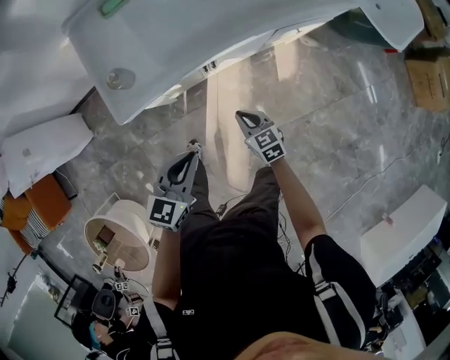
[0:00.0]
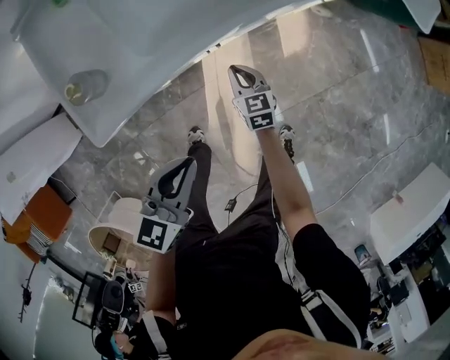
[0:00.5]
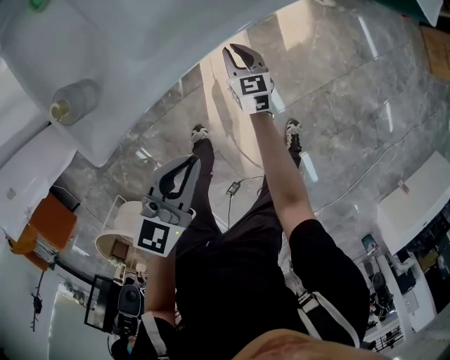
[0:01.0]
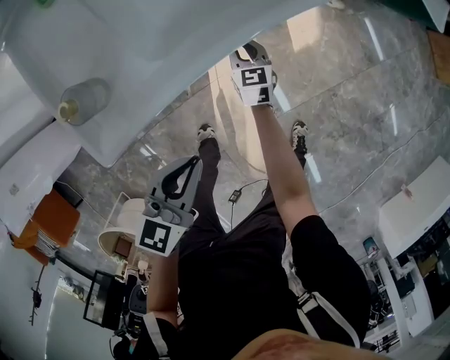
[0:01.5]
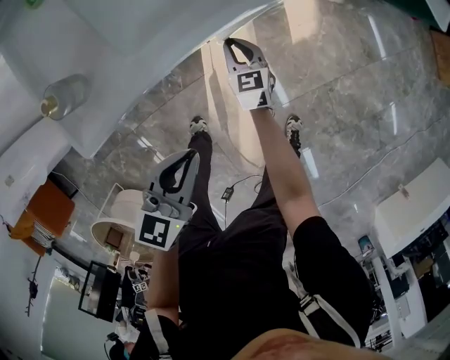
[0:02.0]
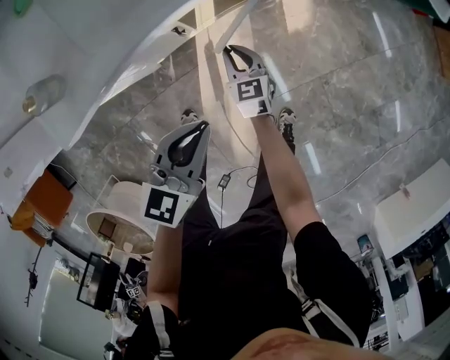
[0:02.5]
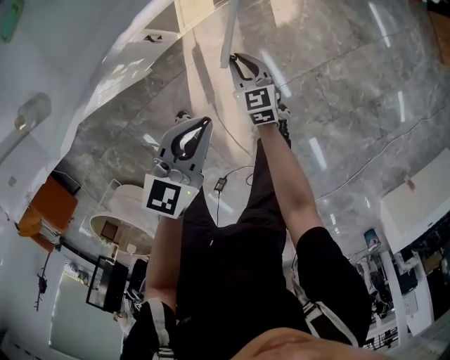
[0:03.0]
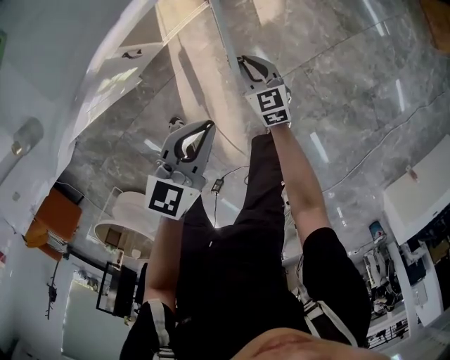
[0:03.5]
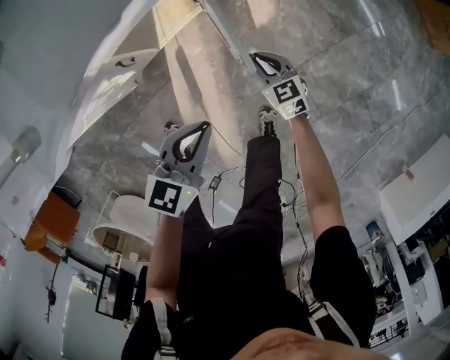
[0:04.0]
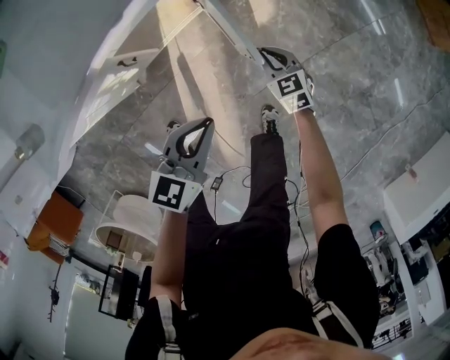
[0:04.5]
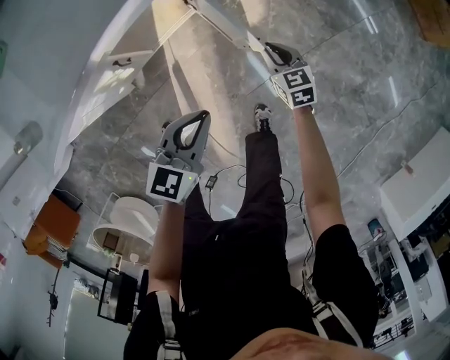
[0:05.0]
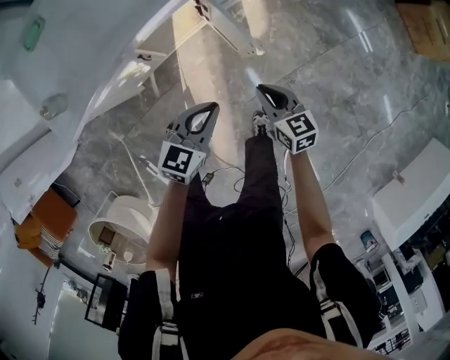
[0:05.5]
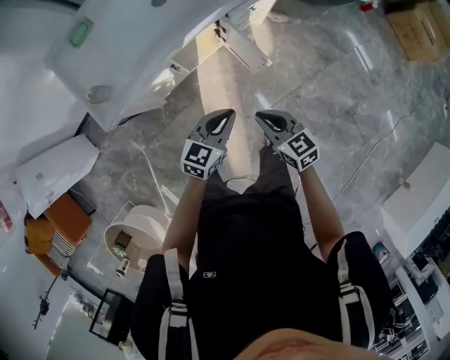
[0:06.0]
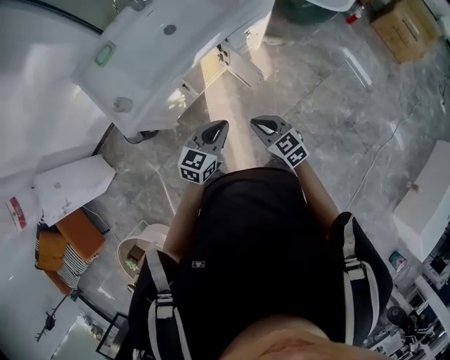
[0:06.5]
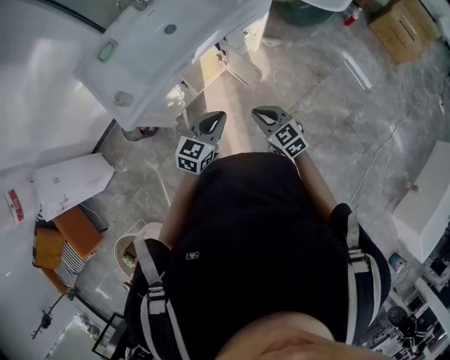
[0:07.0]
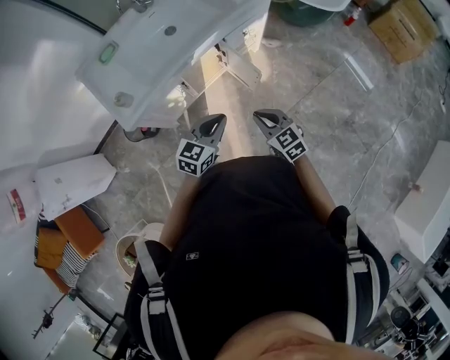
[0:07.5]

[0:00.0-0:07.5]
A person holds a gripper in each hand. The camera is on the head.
0:00.0 to 0:02.0: The right gripper goes about 25 cm downward and forward, and rotates about 20 degrees. The left gripper goes roughly 10 cm downward.
0:02.0 to 0:04.0: The grippers both shift to the right by about 25 cm.
0:04.0 to 0:05.5: The left gripper shifts approximately 5 cm upward. Meanwhile the right gripper is displaced upward and backward by roughly 20 cm.
0:05.5 to 0:07.5: Both grippers travel together upward and backward, about 20 cm.

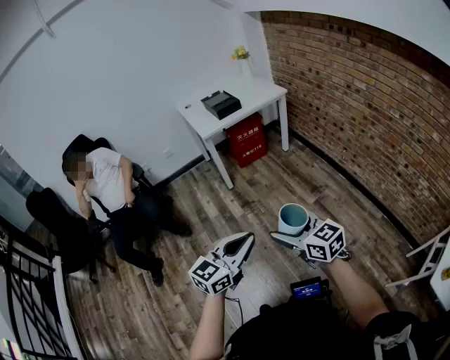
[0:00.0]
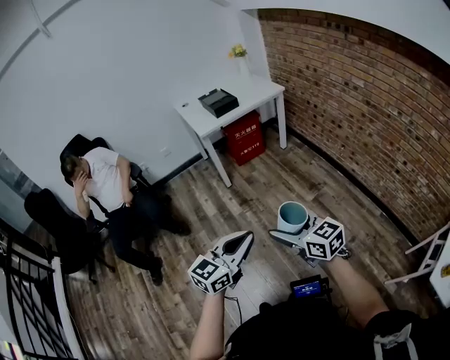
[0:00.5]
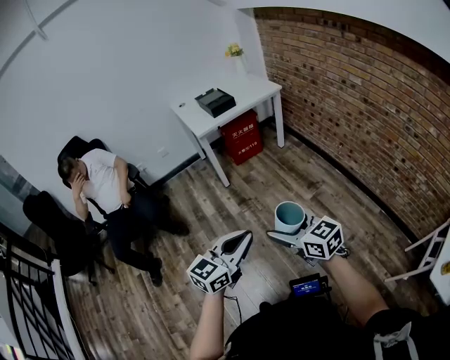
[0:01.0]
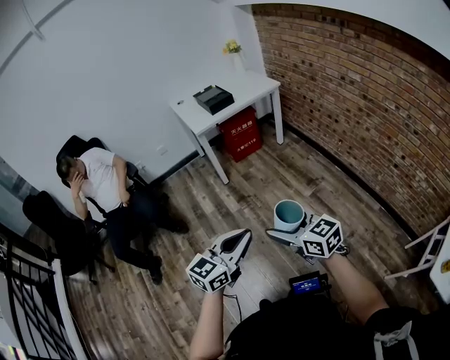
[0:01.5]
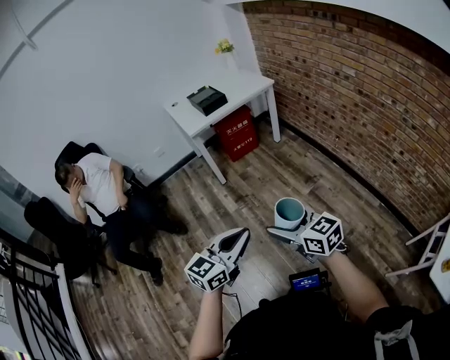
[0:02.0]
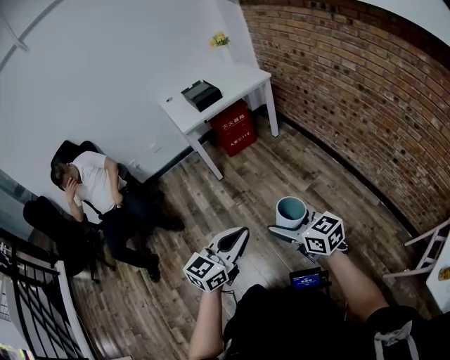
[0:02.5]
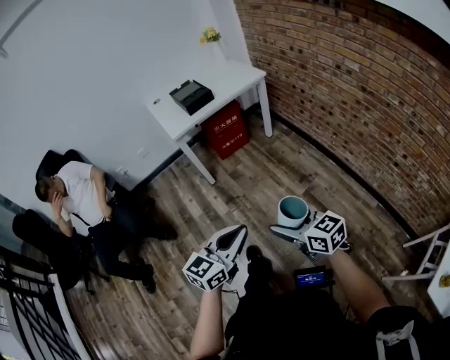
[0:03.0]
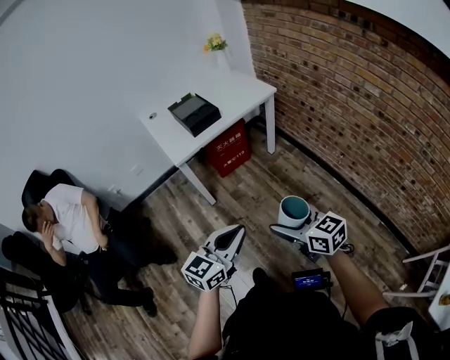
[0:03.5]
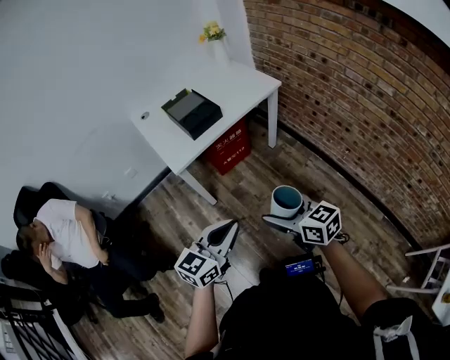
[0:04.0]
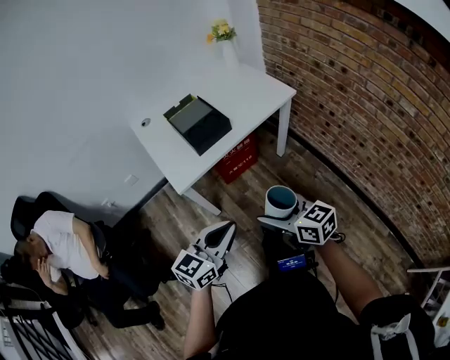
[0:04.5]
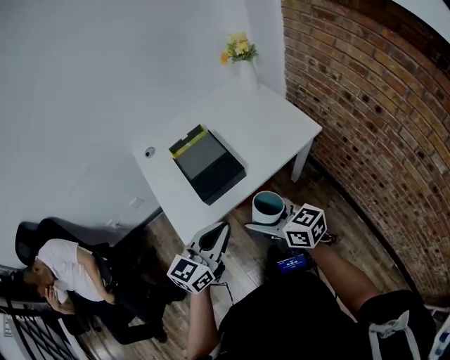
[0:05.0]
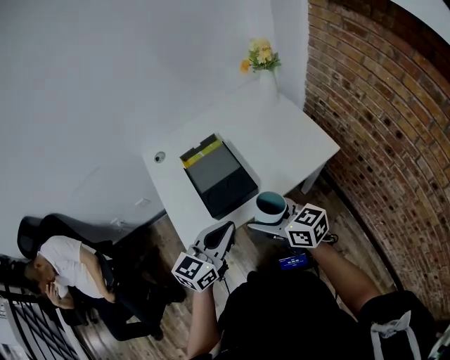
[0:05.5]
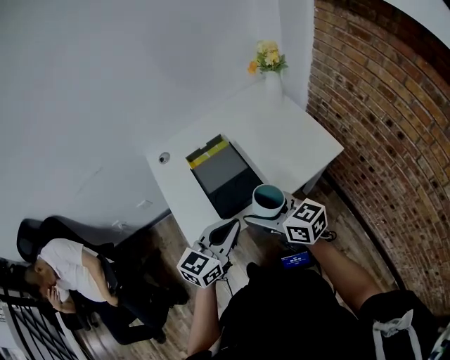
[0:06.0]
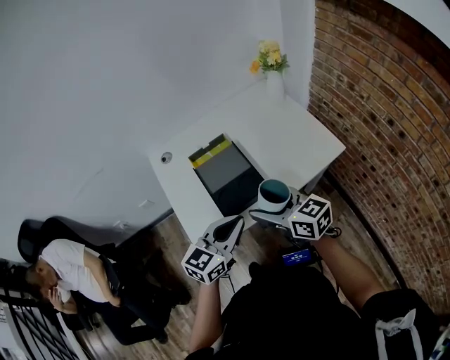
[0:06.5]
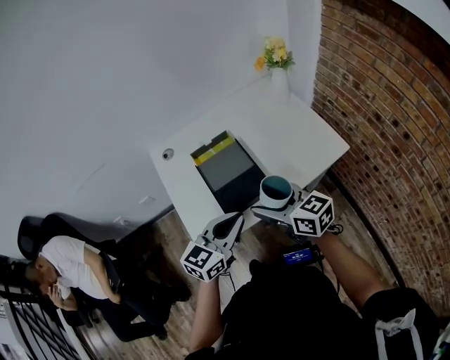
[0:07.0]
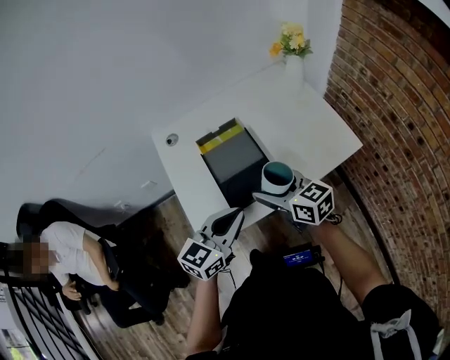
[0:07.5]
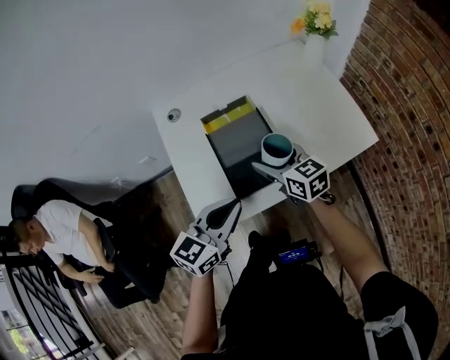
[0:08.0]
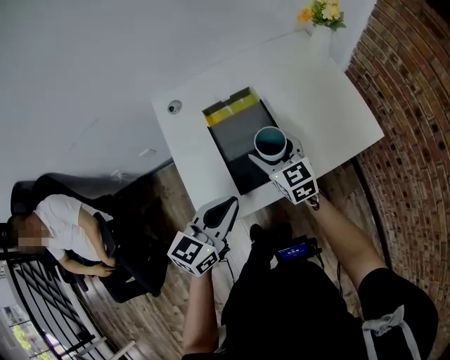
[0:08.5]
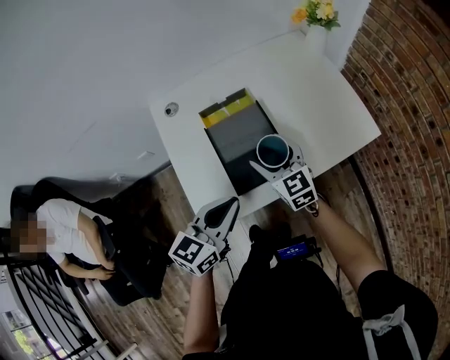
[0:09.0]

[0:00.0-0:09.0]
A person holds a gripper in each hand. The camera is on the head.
0:00.0 to 0:02.0: There are only small adjustments of the grippers.
0:02.0 to 0:04.5: The two grippers travel together, forward, about 60 cm.
0:04.5 to 0:07.0: The two grippers go some 35 cm forward.
0:07.0 to 0:09.0: The right gripper goes approximately 15 cm forward and downward, and changes its angle by some 30 degrees, while the left gripper goes roughly 5 cm to the left.

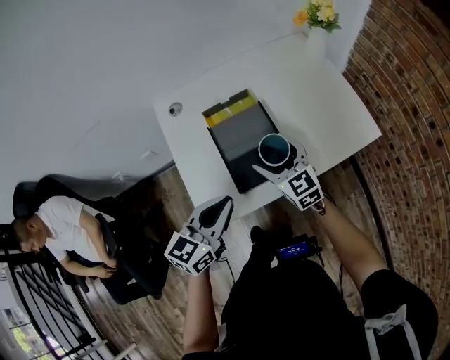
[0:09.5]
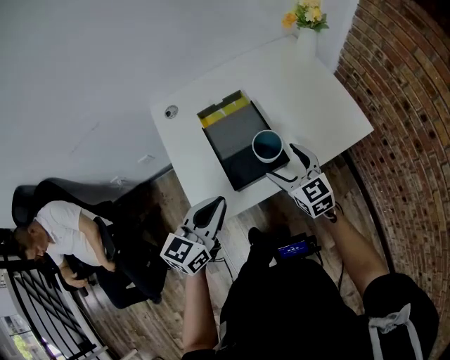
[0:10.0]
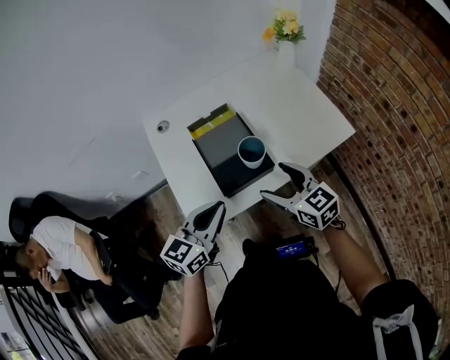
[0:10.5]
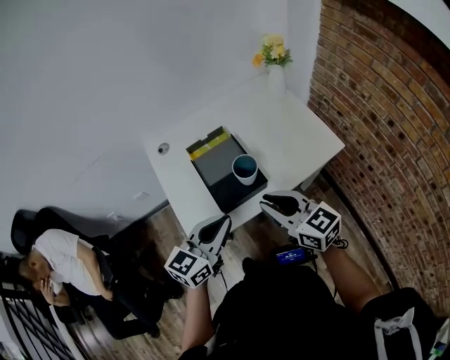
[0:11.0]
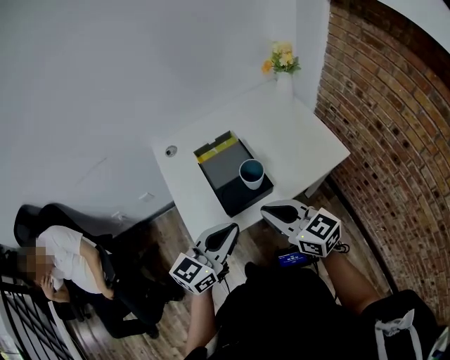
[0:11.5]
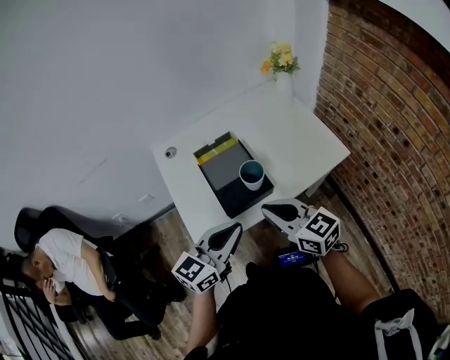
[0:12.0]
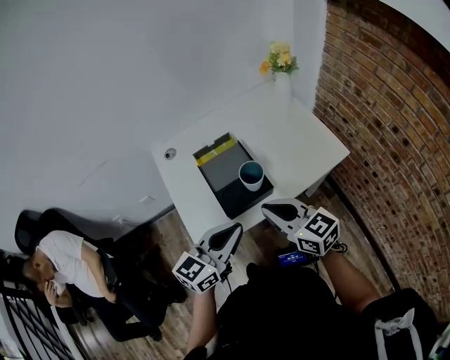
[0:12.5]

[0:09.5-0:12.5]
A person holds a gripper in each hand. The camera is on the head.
0:09.5 to 0:11.0: The right gripper goes some 20 cm backward and upward, and closes. The left gripper goes approximately 5 cm to the right.
0:11.0 to 0:12.5: The grippers make only small movements.

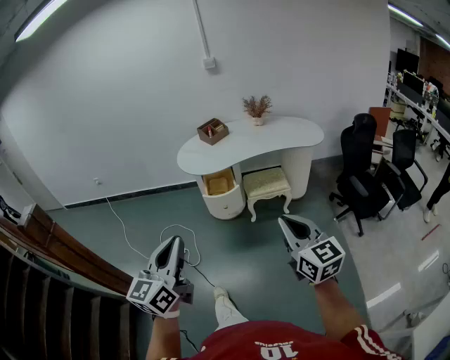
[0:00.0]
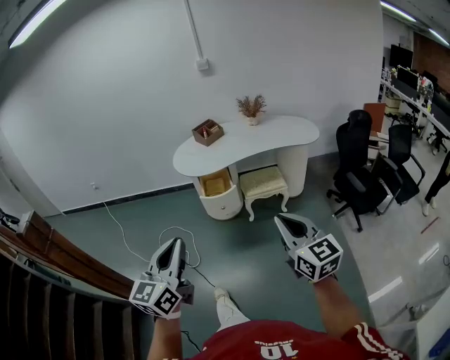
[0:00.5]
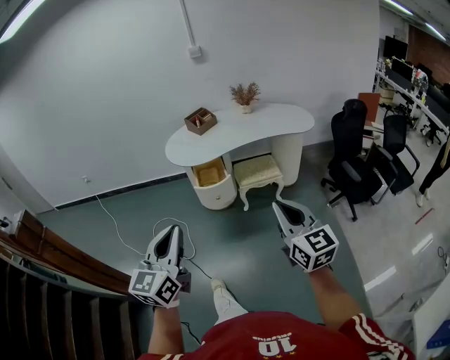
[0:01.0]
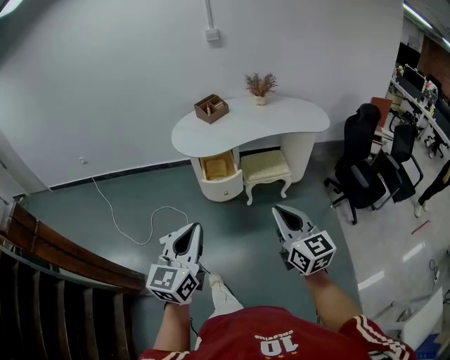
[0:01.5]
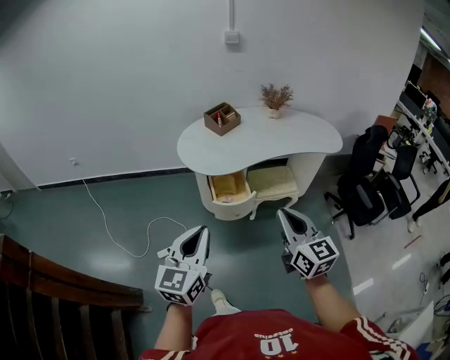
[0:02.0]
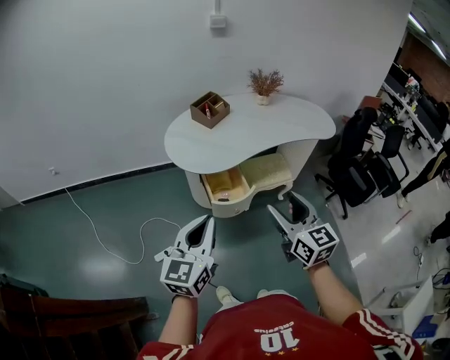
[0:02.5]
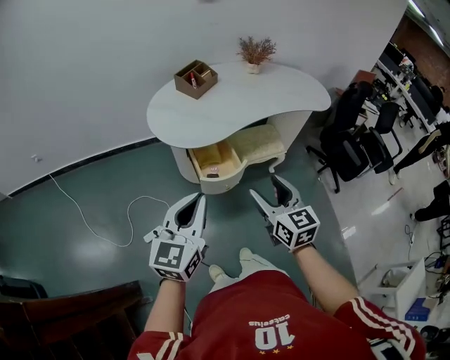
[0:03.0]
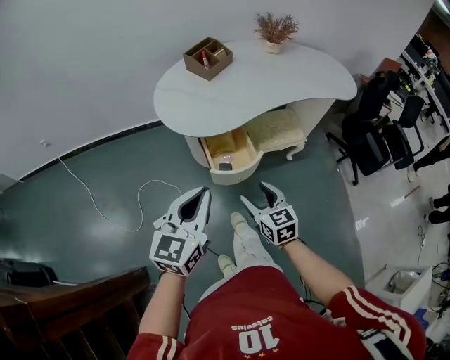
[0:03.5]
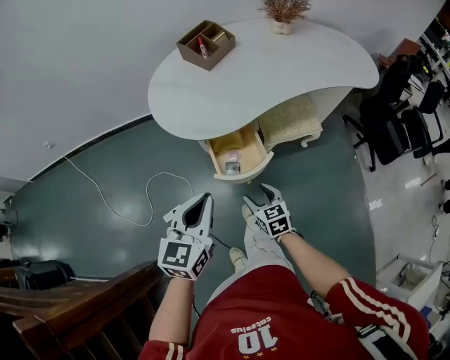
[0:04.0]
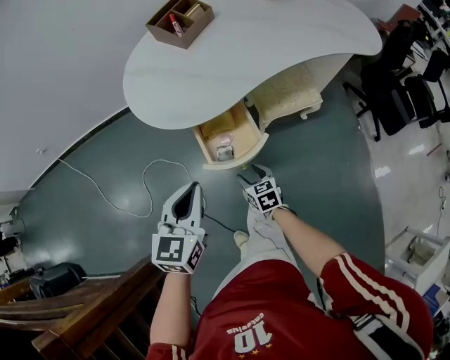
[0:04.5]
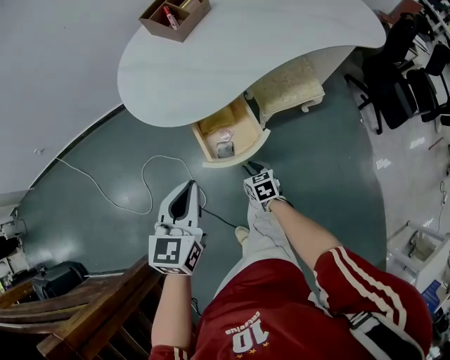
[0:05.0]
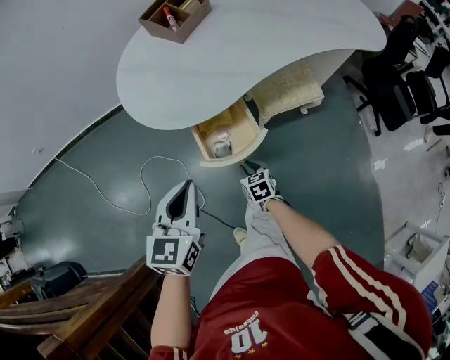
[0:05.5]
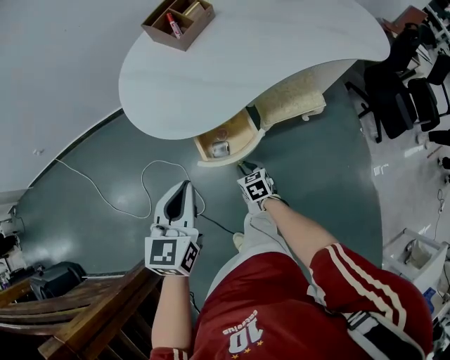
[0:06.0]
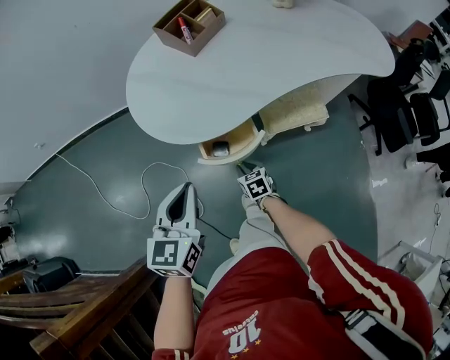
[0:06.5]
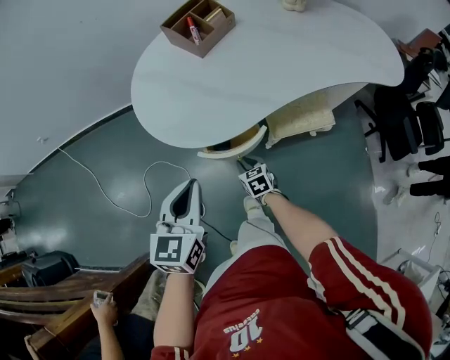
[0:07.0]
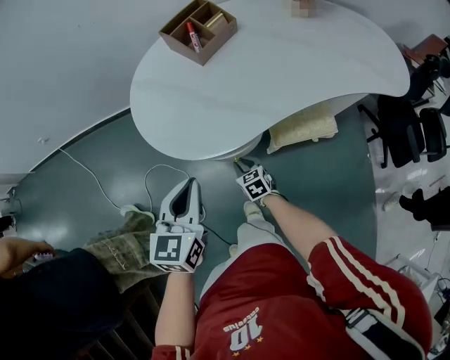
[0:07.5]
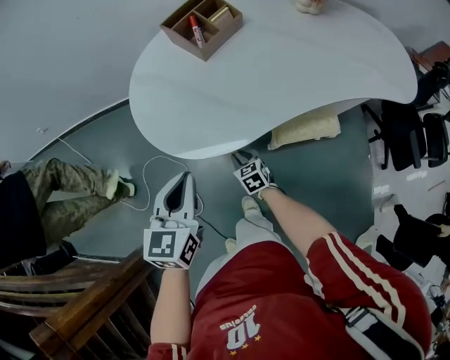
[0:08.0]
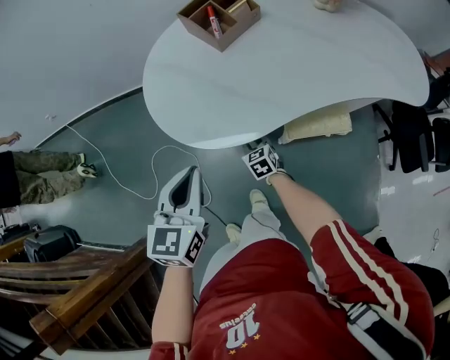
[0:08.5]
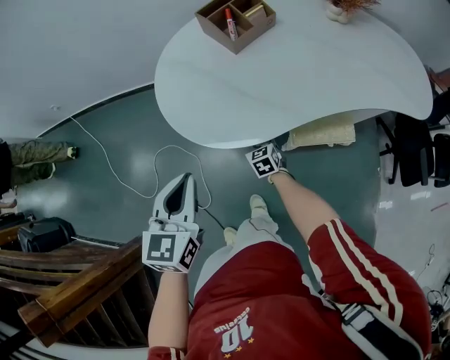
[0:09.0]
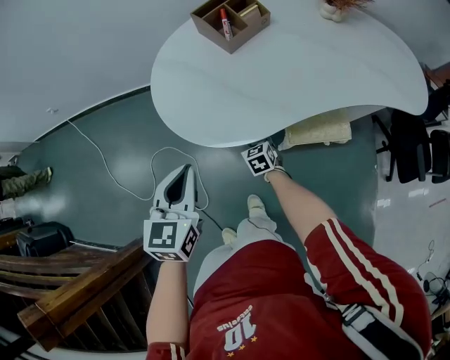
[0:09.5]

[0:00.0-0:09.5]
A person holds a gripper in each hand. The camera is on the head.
0:00.0 to 0:02.0: The two grippers go roughly 30 cm forward and to the left.
0:02.0 to 0:04.0: The right gripper goes approximately 50 cm downward and forward, tilts its fingers roughly 40 degrees downward, and opens its fingers; the left gripper goes about 30 cm forward and downward.
0:04.0 to 0:05.5: The right gripper goes some 15 cm downward, and closes its fingers. Meanwhile the left gripper is displaced downward and forward by some 10 cm.
0:05.5 to 0:07.5: The grippers both shift forward by roughly 15 cm.
0:07.5 to 0:09.5: The left gripper changes place by approximately 5 cm. The right gripper goes approximately 10 cm forward.
